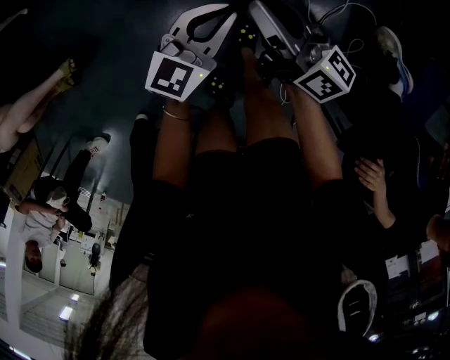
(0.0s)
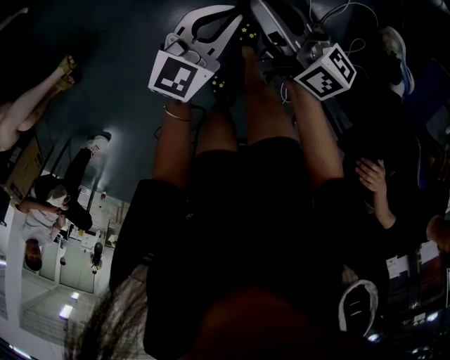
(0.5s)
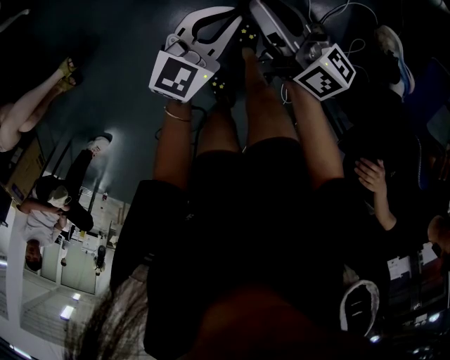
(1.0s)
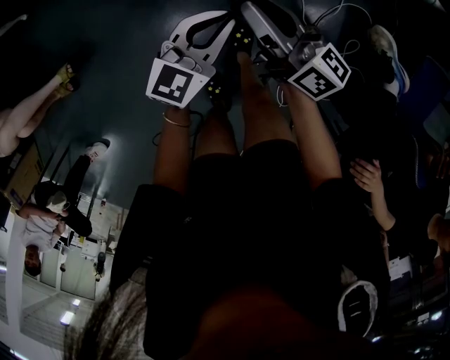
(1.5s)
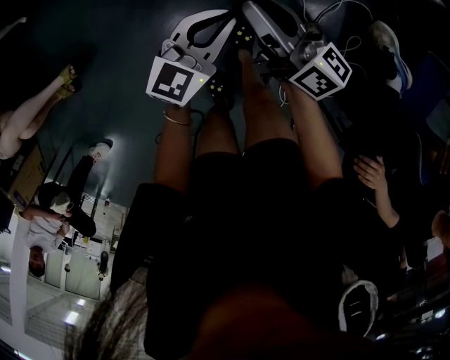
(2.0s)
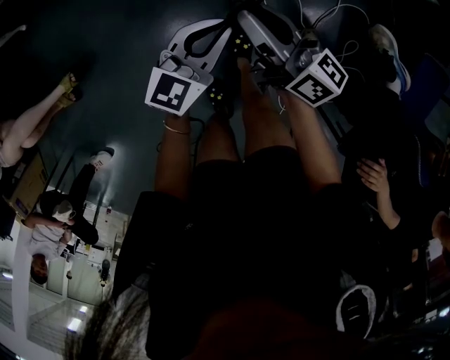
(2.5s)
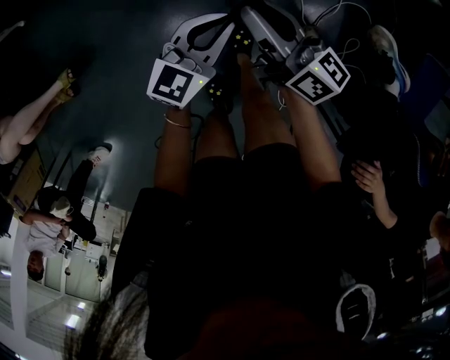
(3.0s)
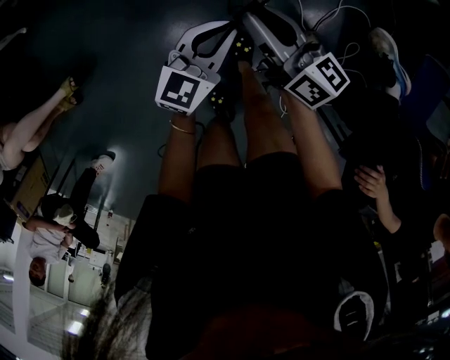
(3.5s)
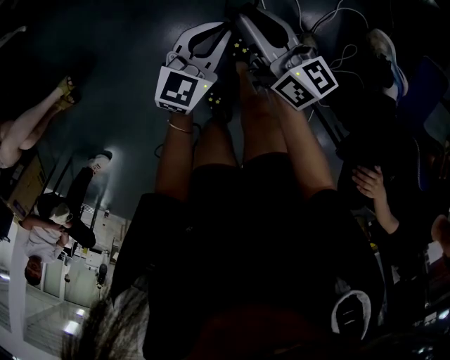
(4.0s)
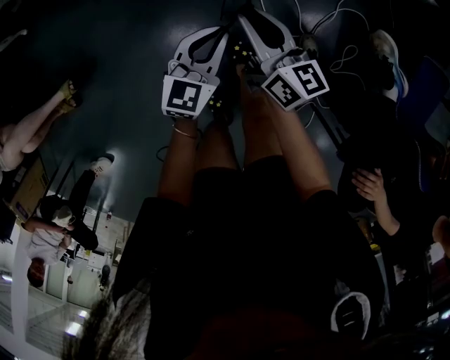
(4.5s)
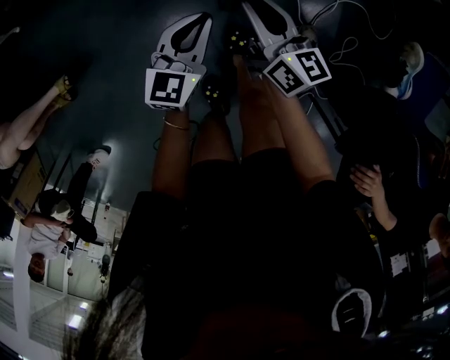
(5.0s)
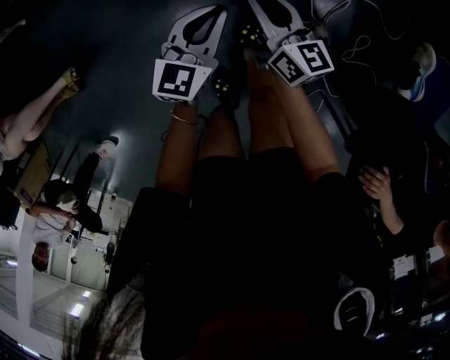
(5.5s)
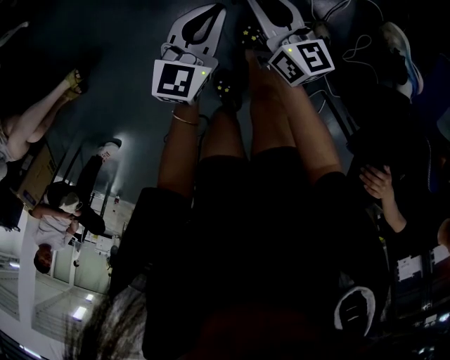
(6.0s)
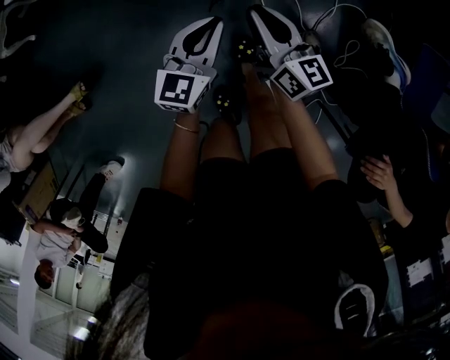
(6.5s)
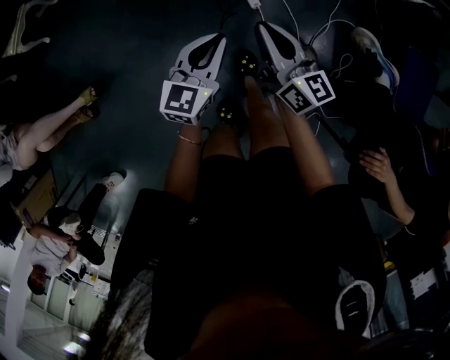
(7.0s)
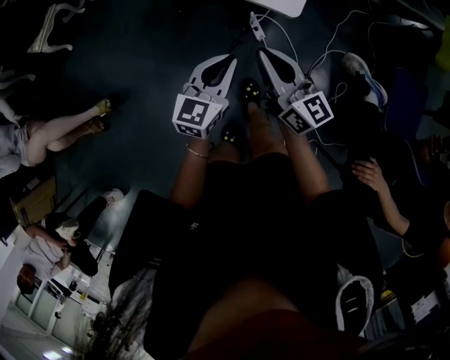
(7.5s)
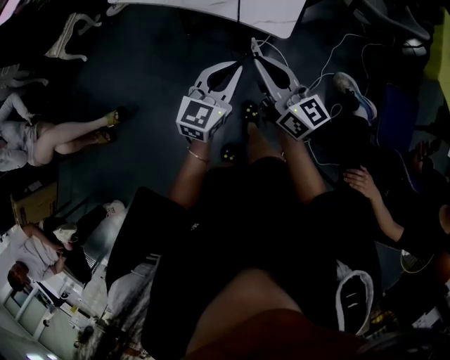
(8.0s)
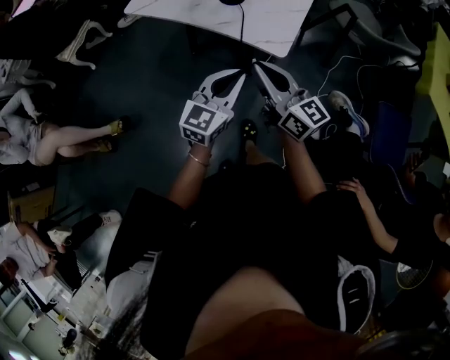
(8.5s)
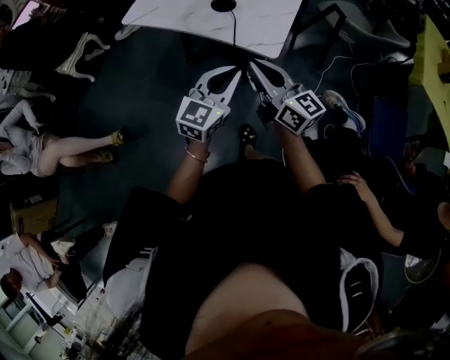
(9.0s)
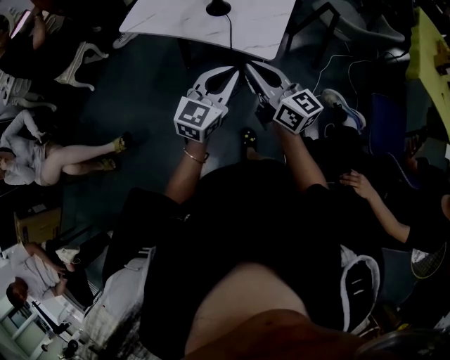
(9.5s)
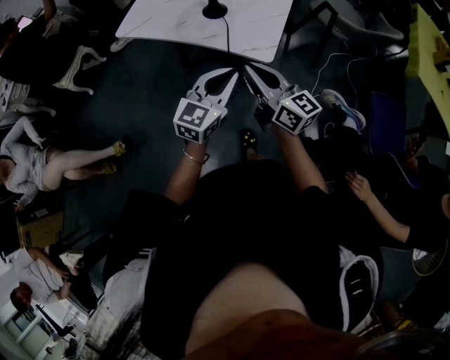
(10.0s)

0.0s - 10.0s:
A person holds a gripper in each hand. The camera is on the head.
0.0s - 2.0s: Both grippers stay put.
2.0s - 4.0s: The grippers move only a little.
4.0s - 6.0s: The right gripper shifts about 5 cm downward.
6.0s - 8.0s: Both grippers travel together upward, about 25 cm. The right gripper turns by about 20 degrees.
8.0s - 10.0s: The right gripper moves roughly 5 cm. The left gripper moves upward, roughly 5 cm.

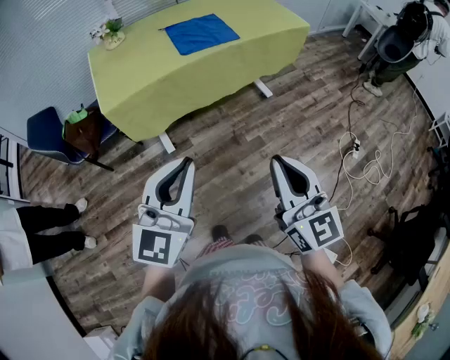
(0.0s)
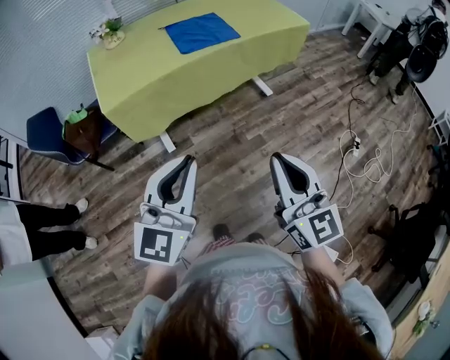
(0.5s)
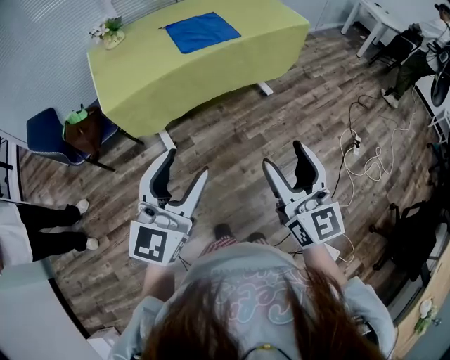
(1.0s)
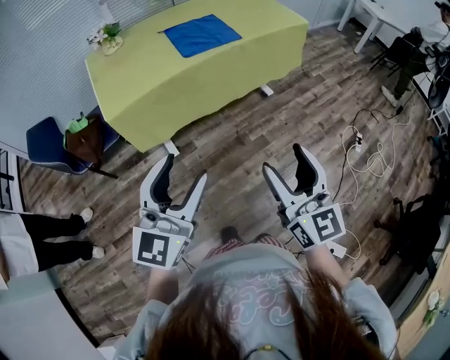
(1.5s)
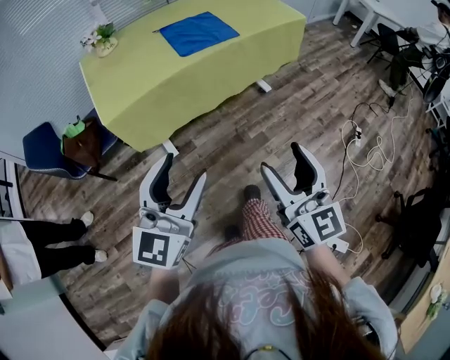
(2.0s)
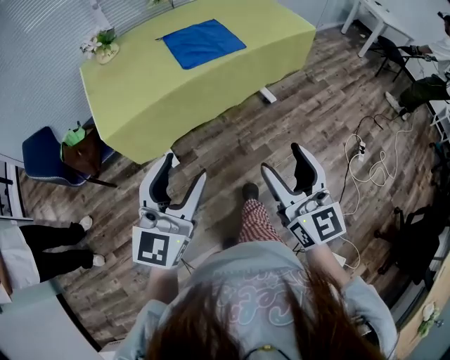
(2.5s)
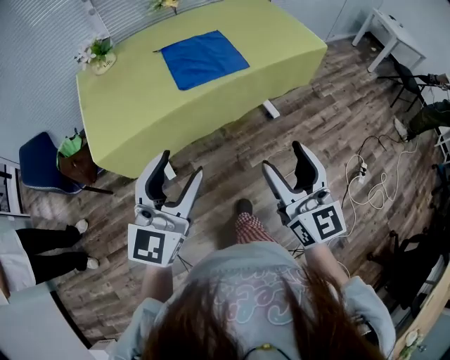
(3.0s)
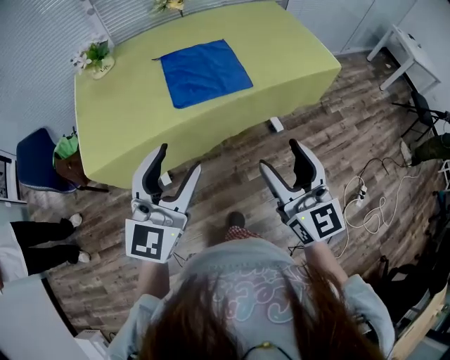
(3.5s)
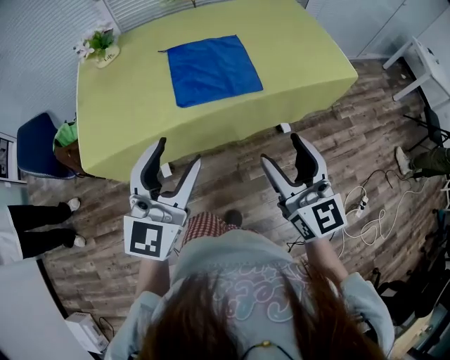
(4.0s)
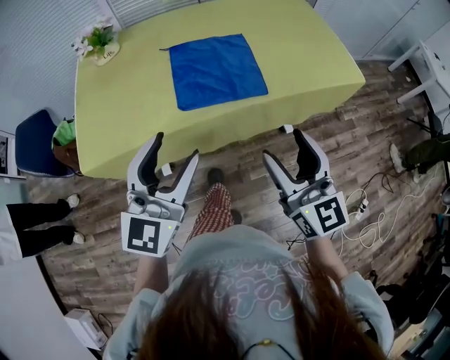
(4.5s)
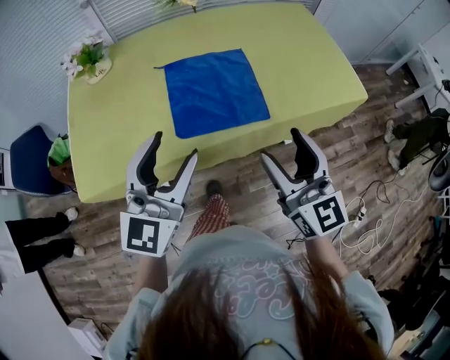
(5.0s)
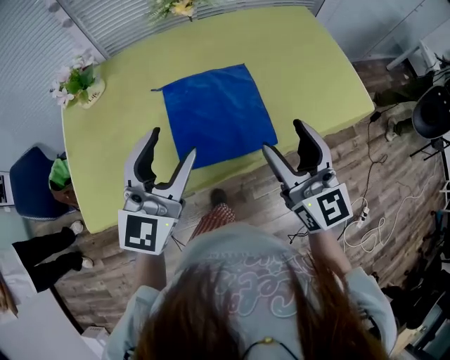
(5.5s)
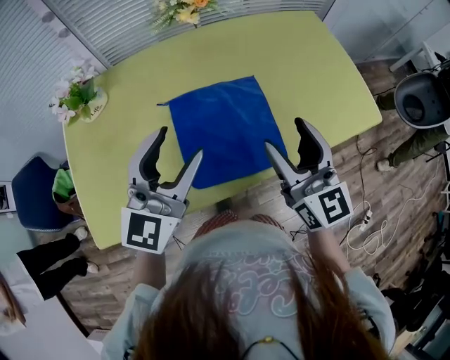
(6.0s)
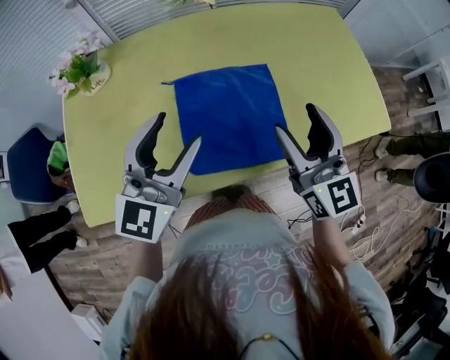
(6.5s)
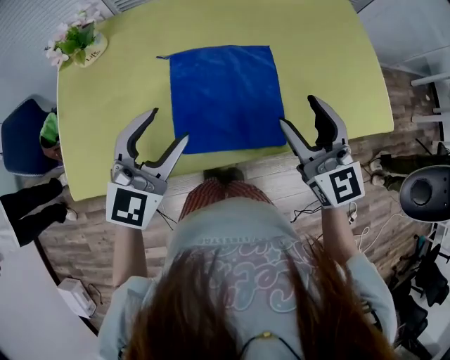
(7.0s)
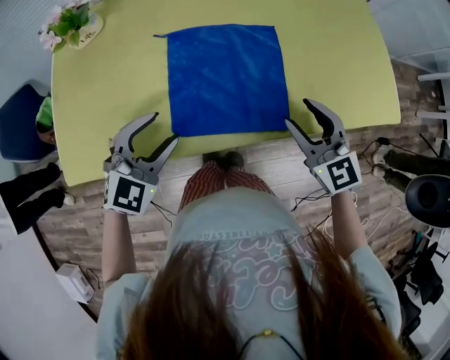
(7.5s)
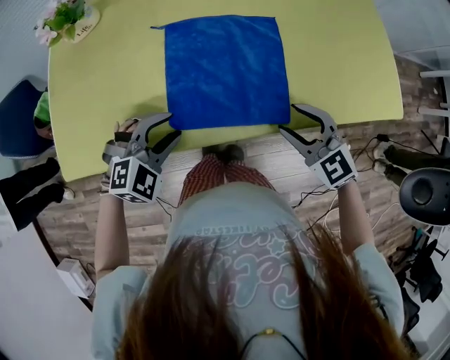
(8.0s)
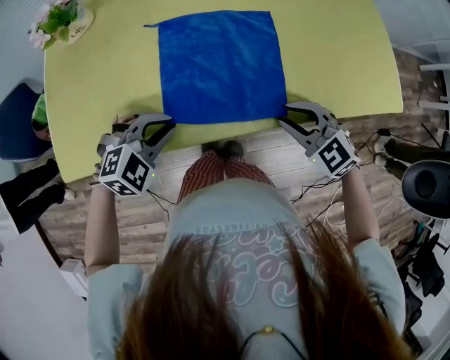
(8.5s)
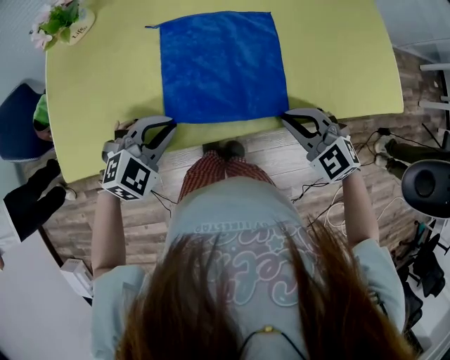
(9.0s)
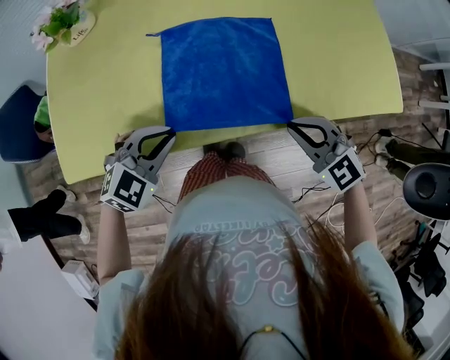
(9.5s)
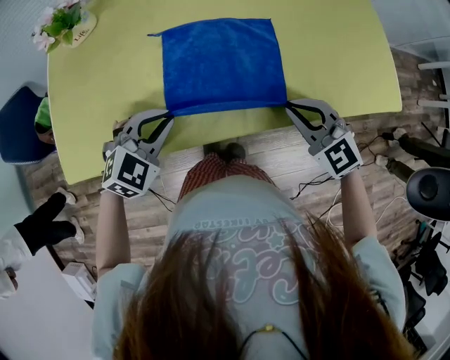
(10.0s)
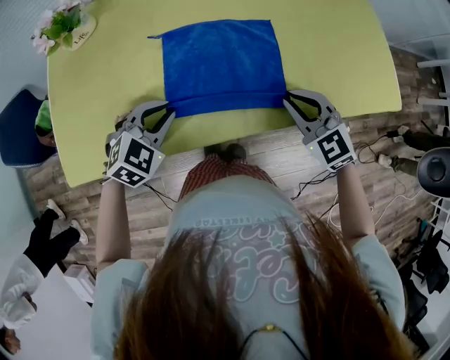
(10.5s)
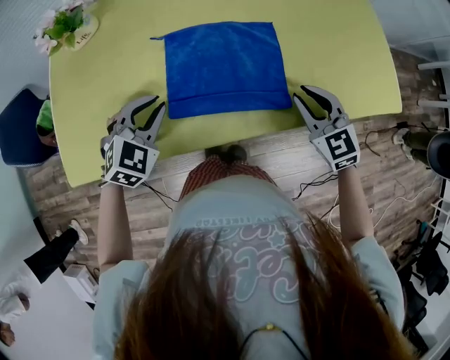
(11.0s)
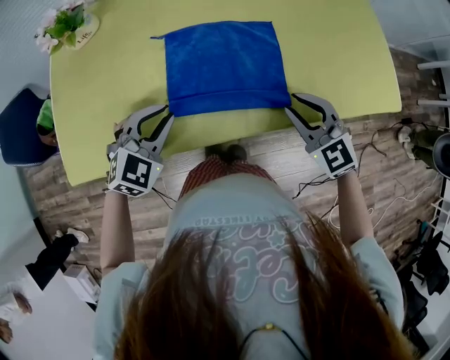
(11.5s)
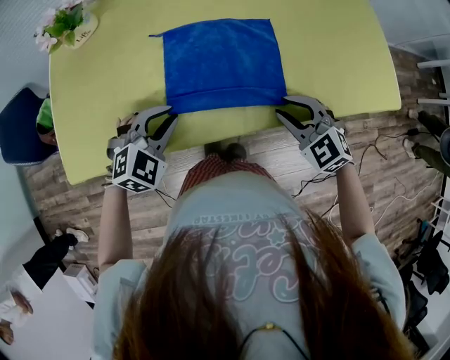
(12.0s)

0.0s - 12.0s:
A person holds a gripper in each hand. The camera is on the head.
0.0s - 2.0s: The right gripper moves some 5 cm, and opens up. The left gripper goes some 5 cm to the left, and opens up.
2.0s - 4.0s: The two grippers go approximately 35 cm forward.
4.0s - 6.0s: Both grippers move forward, roughly 30 cm.
6.0s - 8.0s: Both grippers move downward, some 20 cm. The left gripper tilts its fingers some 50 degrees downward. The right gripper tilts its fingers roughly 30 degrees downward.
8.0s - 10.0s: The right gripper closes up. Meanwhile the left gripper closes.
10.0s - 12.0s: The grippers make only small movements.

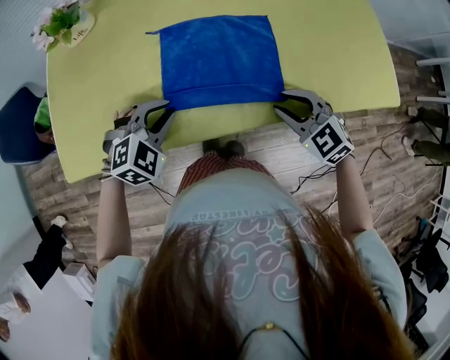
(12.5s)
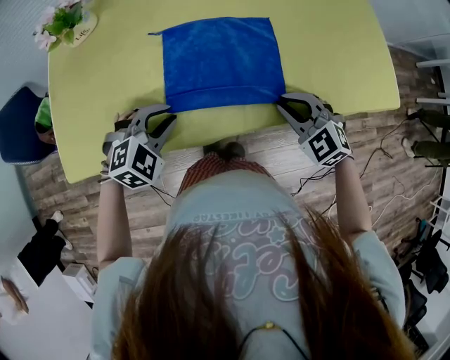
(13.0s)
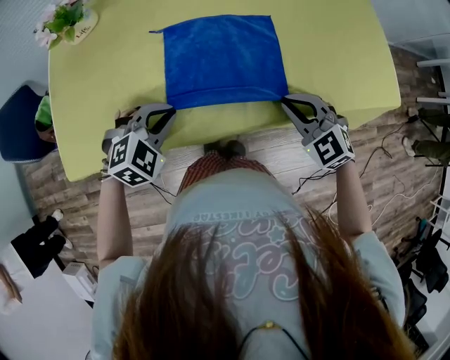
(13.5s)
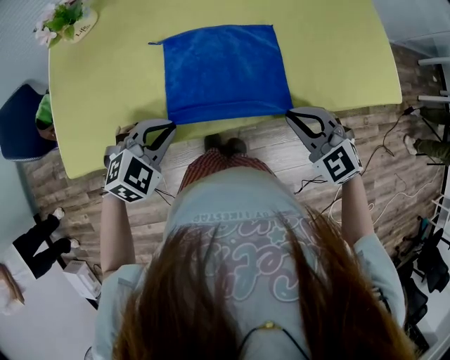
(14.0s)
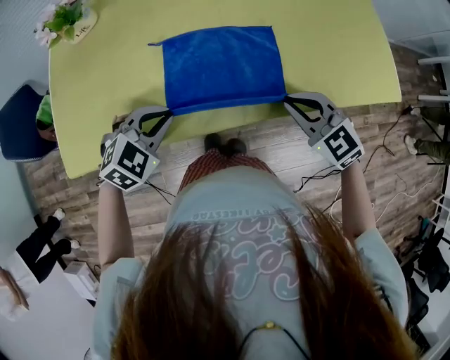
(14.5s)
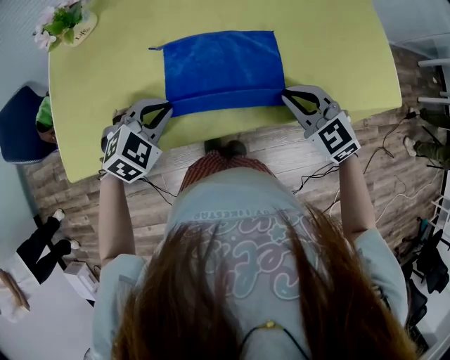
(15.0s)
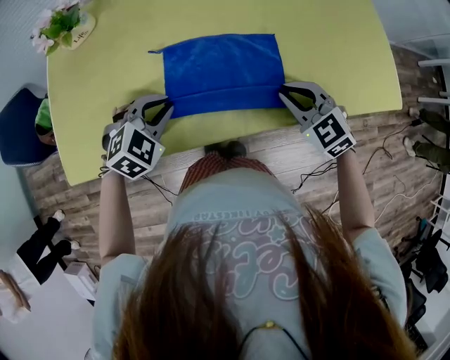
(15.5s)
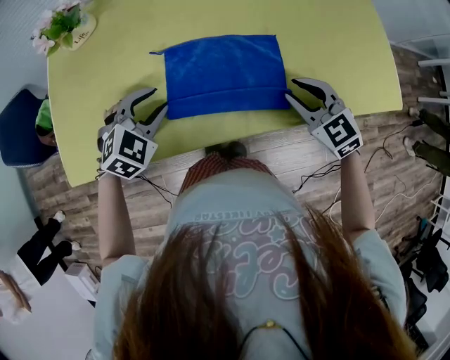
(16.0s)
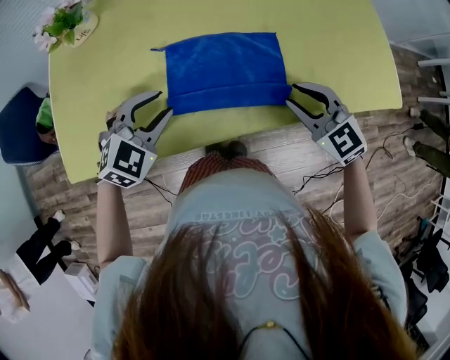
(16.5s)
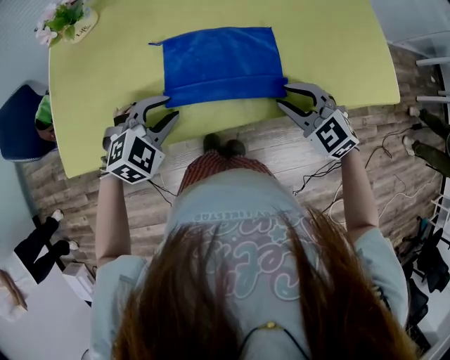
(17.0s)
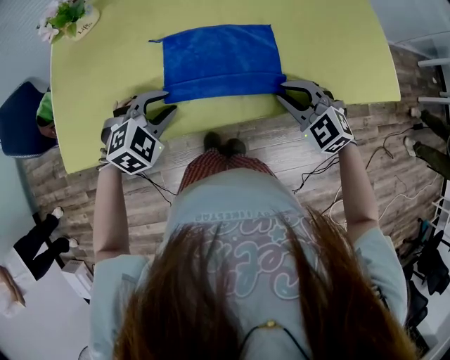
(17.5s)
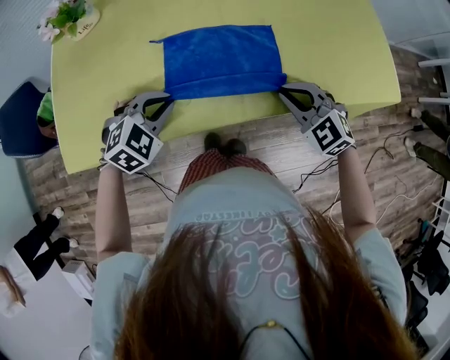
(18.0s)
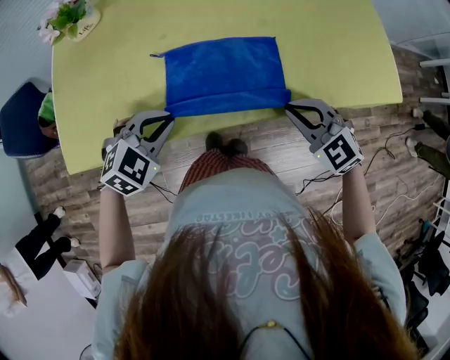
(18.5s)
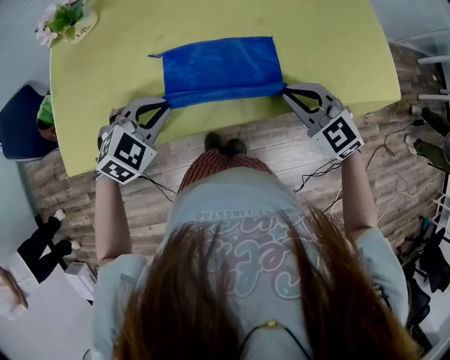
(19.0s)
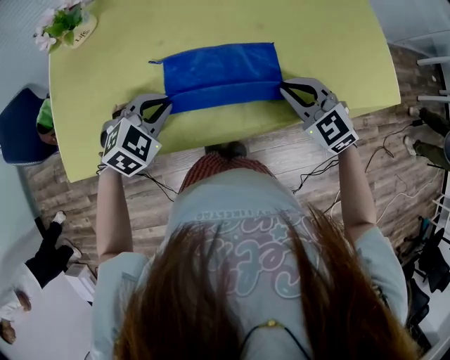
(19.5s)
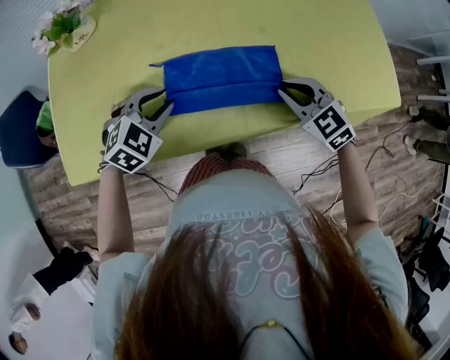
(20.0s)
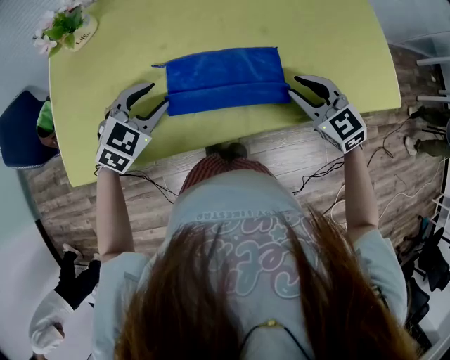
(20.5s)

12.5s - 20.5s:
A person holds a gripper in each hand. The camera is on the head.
12.5s - 14.5s: The right gripper closes.
14.5s - 16.5s: The left gripper changes place by approximately 5 cm, and opens up.
16.5s - 18.5s: Both grippers travel together backward, approximately 5 cm. The left gripper closes its fingers.
18.5s - 20.5s: Both grippers travel together forward, some 10 cm. The right gripper opens, while the left gripper opens its fingers.
